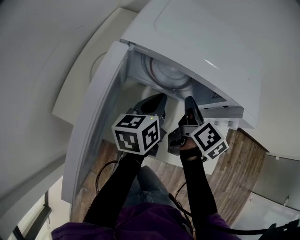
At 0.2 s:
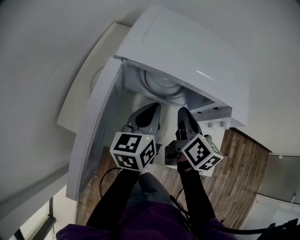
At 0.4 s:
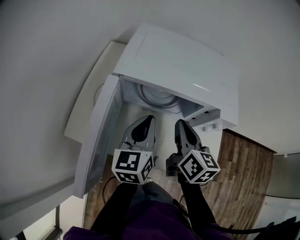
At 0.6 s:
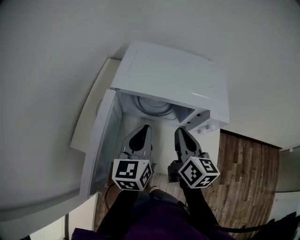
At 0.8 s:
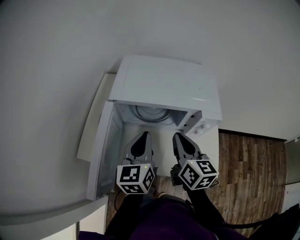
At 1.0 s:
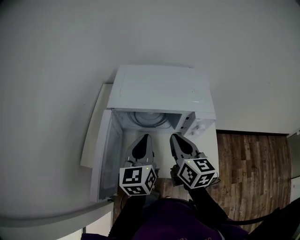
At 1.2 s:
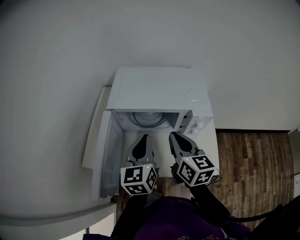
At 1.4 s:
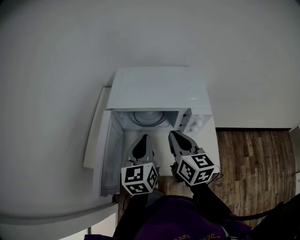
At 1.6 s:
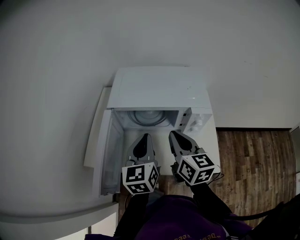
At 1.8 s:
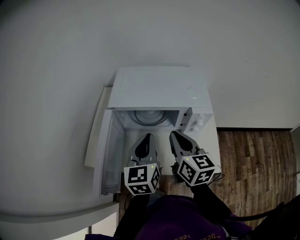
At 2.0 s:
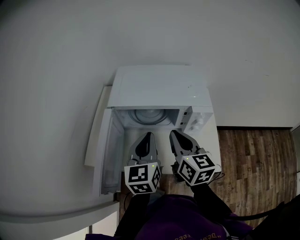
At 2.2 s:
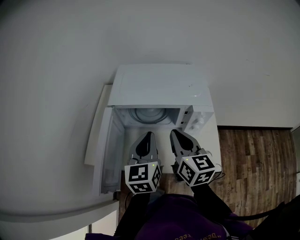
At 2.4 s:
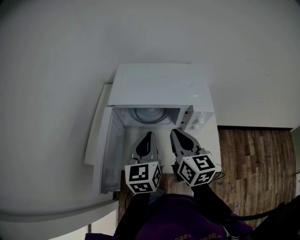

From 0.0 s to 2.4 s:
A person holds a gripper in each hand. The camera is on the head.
From 0.0 s to 1.2 s: The two grippers go about 20 cm upward and backward. The left gripper changes its angle by some 30 degrees. The right gripper changes its angle by approximately 30 degrees.
From 1.2 s to 2.4 s: The grippers stay close to where they were, moving slightly.

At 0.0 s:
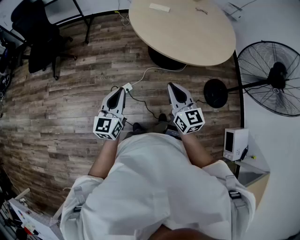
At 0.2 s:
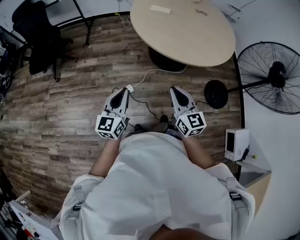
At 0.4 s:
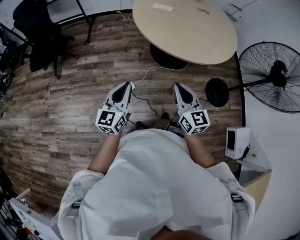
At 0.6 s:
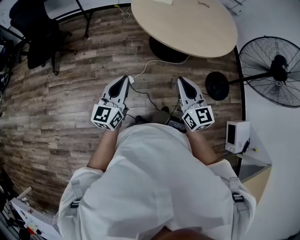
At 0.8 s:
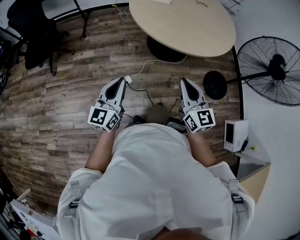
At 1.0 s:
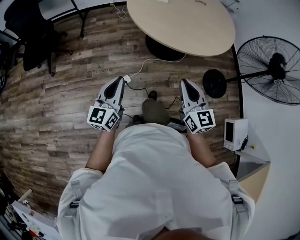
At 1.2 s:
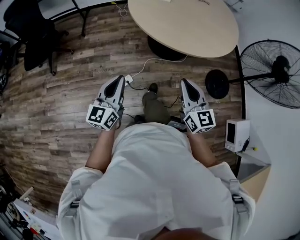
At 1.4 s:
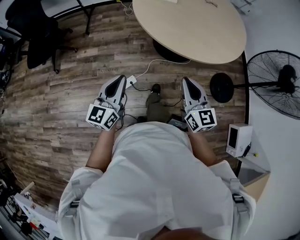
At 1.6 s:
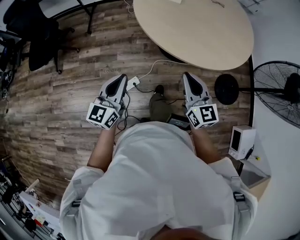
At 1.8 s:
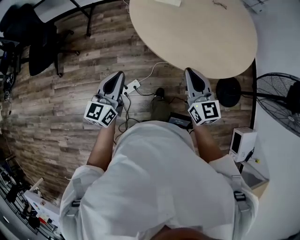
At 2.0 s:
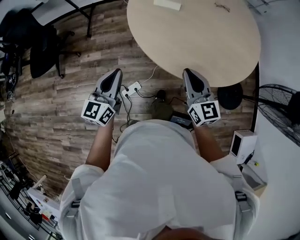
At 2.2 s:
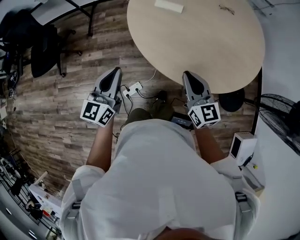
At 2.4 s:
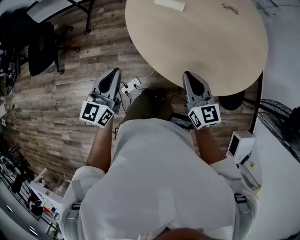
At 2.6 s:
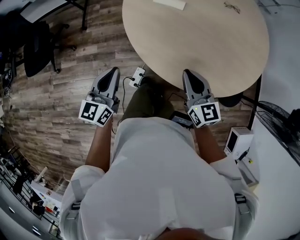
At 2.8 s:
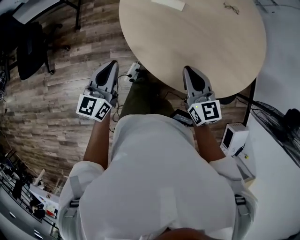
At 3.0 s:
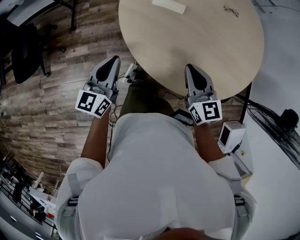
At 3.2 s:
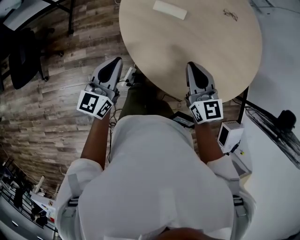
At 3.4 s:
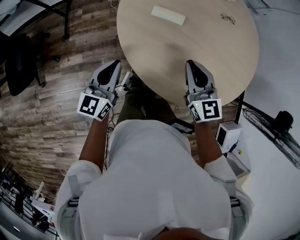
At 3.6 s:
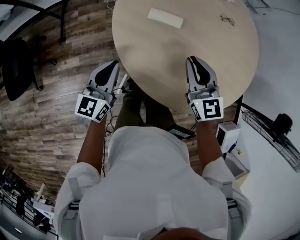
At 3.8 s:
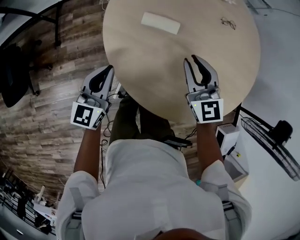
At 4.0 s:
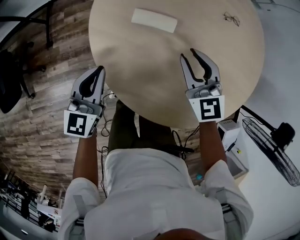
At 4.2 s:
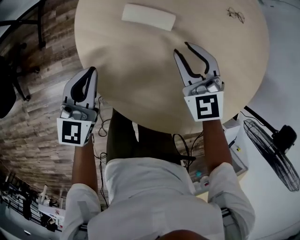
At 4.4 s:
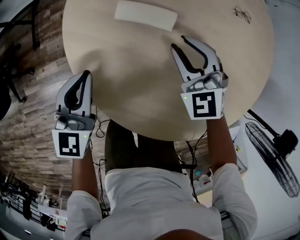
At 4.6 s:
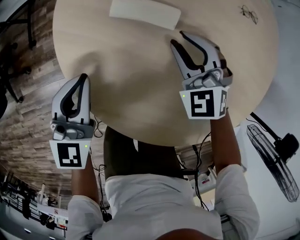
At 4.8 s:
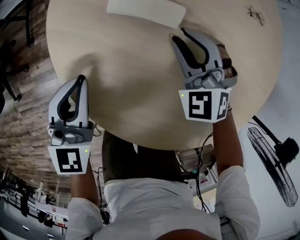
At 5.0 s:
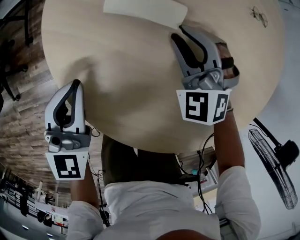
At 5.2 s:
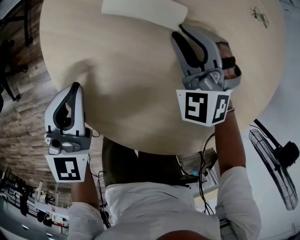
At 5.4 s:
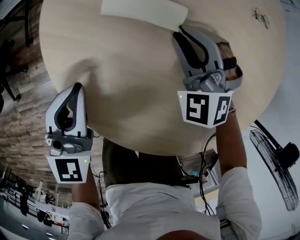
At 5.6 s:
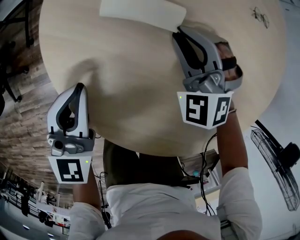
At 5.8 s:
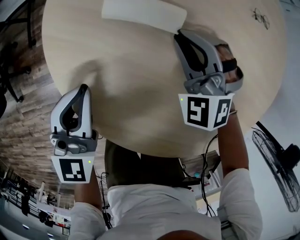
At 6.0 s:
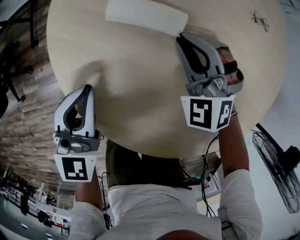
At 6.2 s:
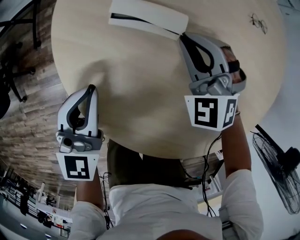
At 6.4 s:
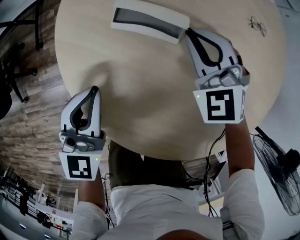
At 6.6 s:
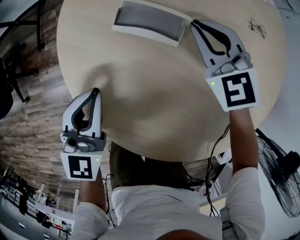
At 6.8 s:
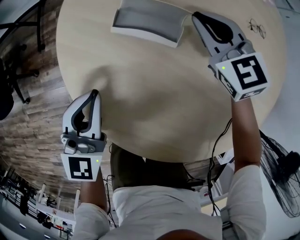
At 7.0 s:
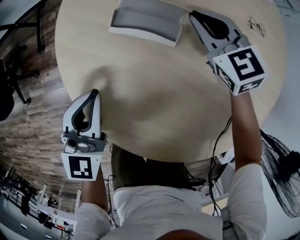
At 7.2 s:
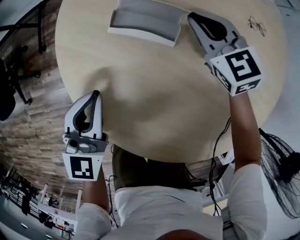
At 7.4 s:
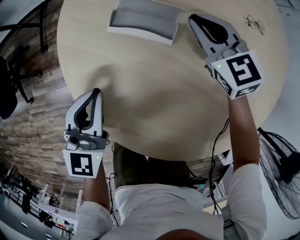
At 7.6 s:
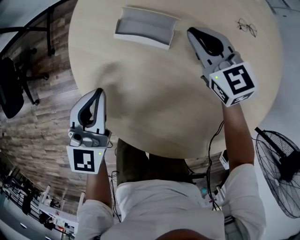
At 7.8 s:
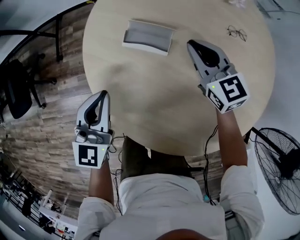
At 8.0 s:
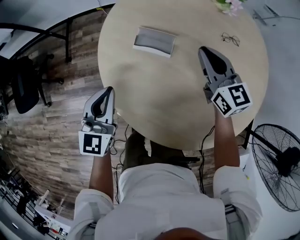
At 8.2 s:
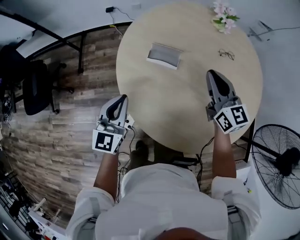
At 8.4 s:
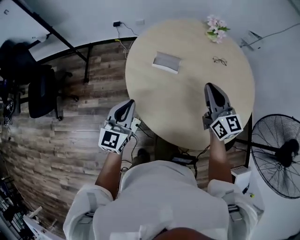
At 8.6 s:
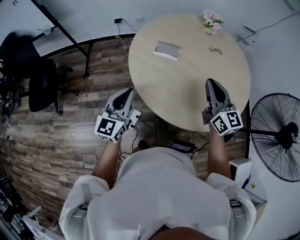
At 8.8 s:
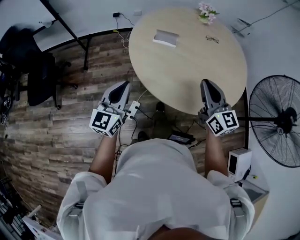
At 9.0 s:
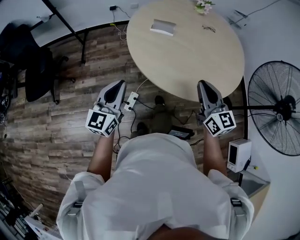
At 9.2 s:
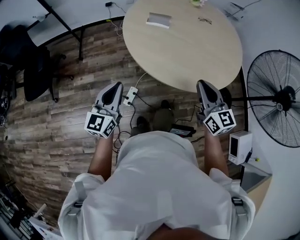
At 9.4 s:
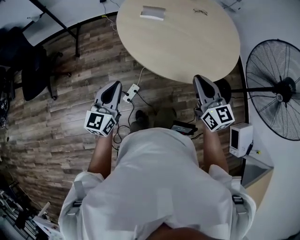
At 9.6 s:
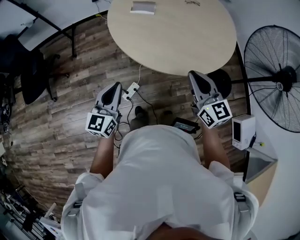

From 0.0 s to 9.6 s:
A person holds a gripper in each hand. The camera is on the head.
From 0.0 s to 1.6 s: Both grippers move forward, roughly 15 cm.
From 1.6 s to 3.2 s: The grippers both shift forward by about 35 cm.
From 3.2 s to 4.8 s: The left gripper travels downward, forward and to the right by about 25 cm, and turns by about 30 degrees, while the right gripper heads downward and forward, covering roughly 30 cm, rolls counterclockwise, seen from behind, by some 50 degrees, and opens up.
From 4.8 s to 6.4 s: The right gripper shifts by some 5 cm, and closes up.
From 6.4 s to 8.0 s: The two grippers go roughly 15 cm upward. The right gripper rolls clockwise, seen from behind, by some 40 degrees.
From 8.0 s to 9.6 s: Both grippers move backward, some 40 cm.

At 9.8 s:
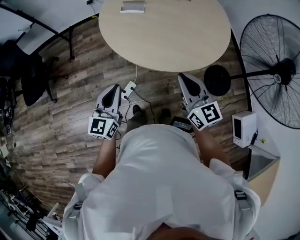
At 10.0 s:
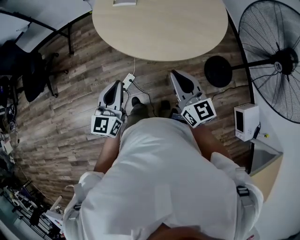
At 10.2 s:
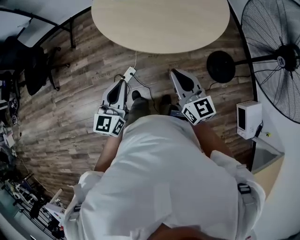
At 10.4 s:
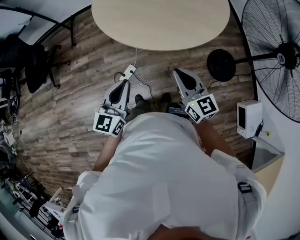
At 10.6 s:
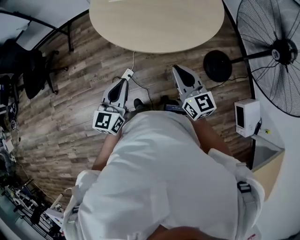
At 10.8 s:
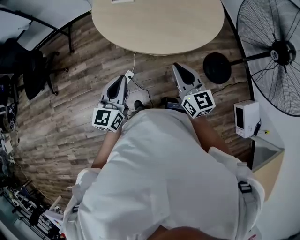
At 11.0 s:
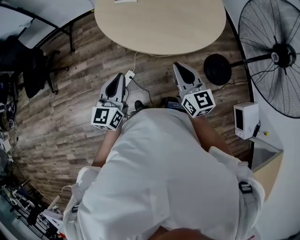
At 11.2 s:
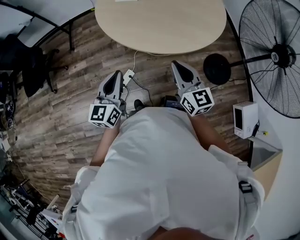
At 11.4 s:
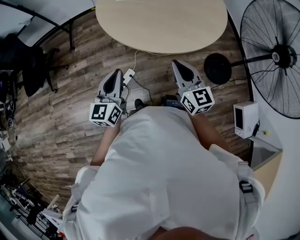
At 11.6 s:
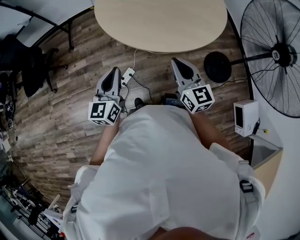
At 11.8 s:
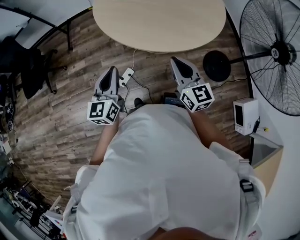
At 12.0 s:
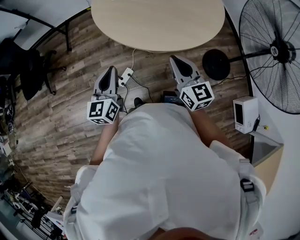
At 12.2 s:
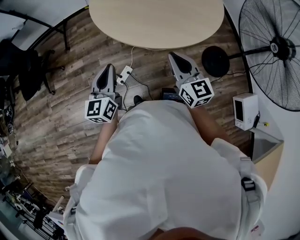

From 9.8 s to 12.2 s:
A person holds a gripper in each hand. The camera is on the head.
From 9.8 s to 11.0 s: The left gripper travels backward and to the right by approximately 10 cm. The right gripper moves backward, approximately 5 cm.
From 11.0 s to 12.2 s: The left gripper changes place by about 5 cm.

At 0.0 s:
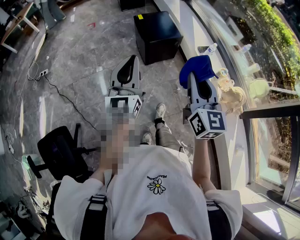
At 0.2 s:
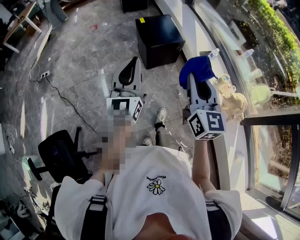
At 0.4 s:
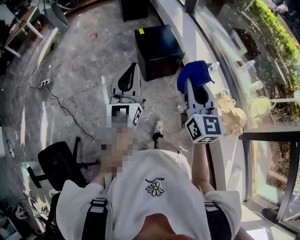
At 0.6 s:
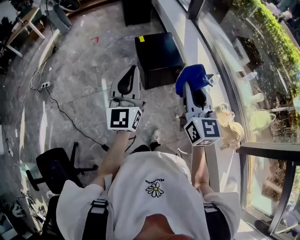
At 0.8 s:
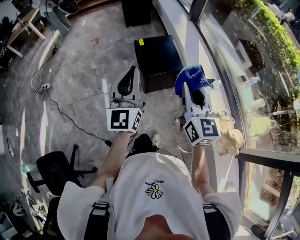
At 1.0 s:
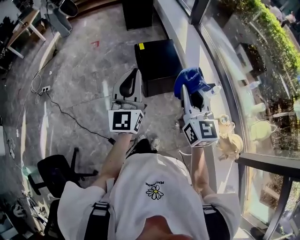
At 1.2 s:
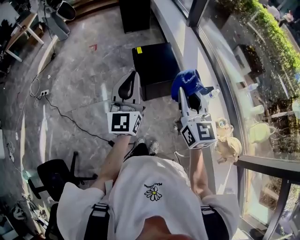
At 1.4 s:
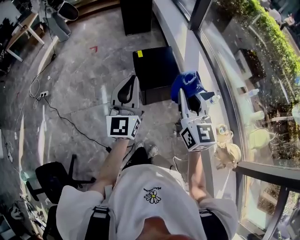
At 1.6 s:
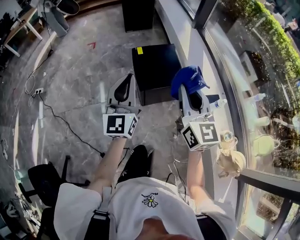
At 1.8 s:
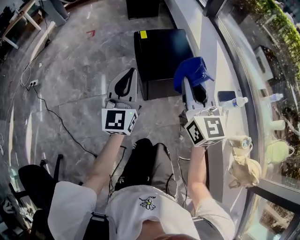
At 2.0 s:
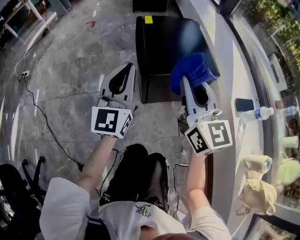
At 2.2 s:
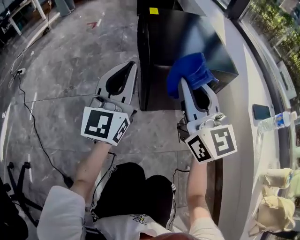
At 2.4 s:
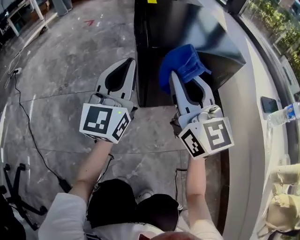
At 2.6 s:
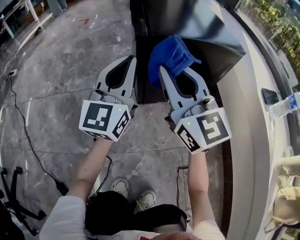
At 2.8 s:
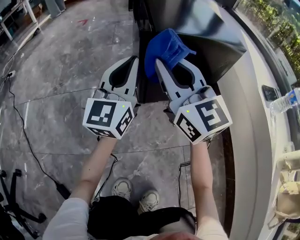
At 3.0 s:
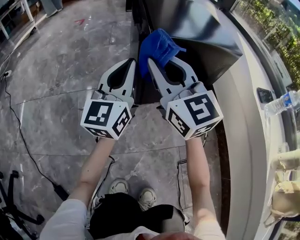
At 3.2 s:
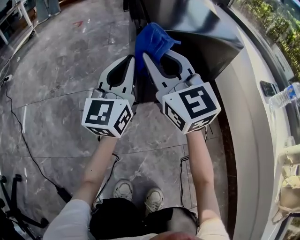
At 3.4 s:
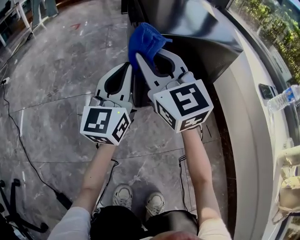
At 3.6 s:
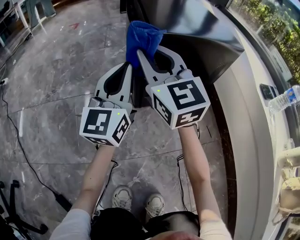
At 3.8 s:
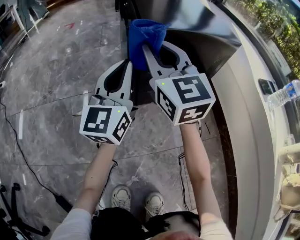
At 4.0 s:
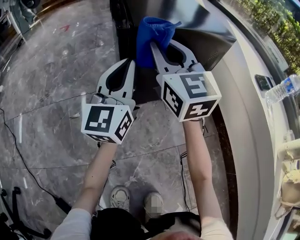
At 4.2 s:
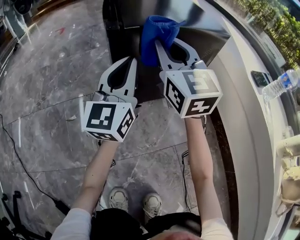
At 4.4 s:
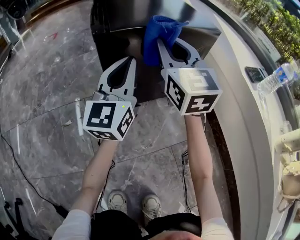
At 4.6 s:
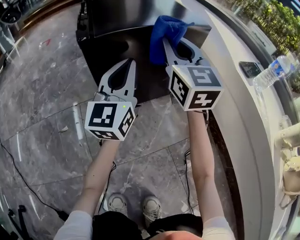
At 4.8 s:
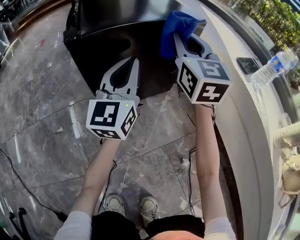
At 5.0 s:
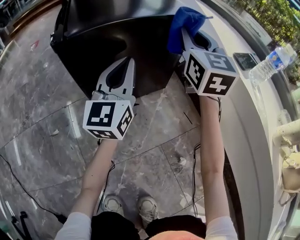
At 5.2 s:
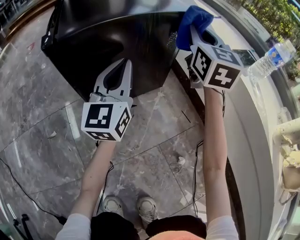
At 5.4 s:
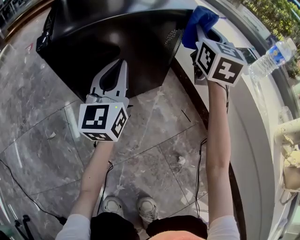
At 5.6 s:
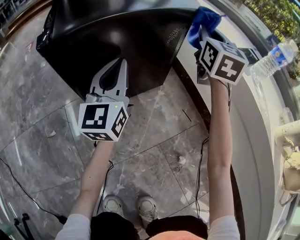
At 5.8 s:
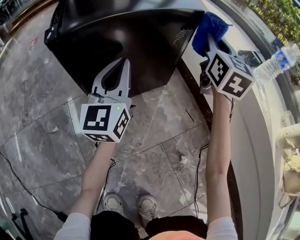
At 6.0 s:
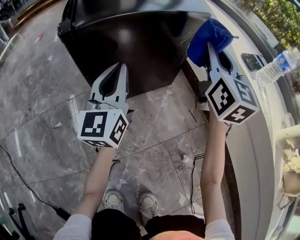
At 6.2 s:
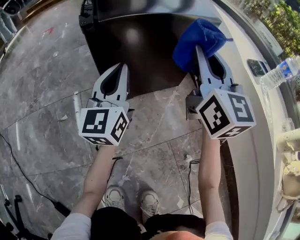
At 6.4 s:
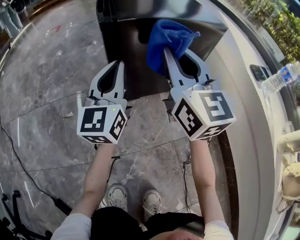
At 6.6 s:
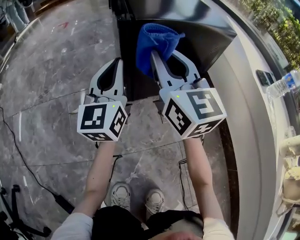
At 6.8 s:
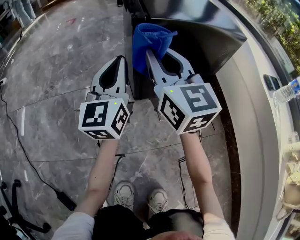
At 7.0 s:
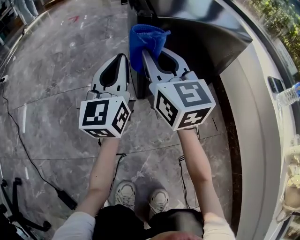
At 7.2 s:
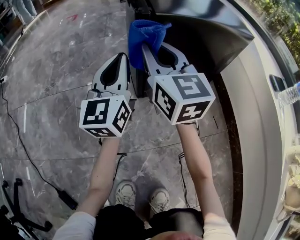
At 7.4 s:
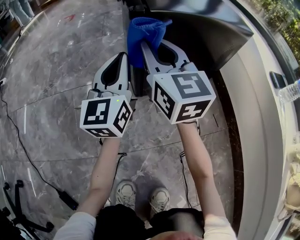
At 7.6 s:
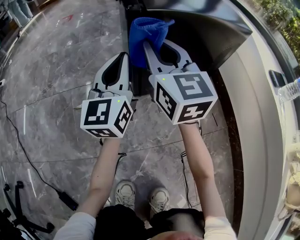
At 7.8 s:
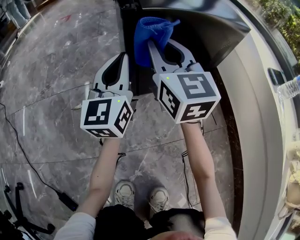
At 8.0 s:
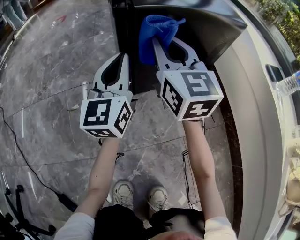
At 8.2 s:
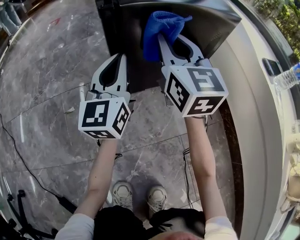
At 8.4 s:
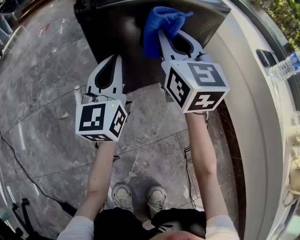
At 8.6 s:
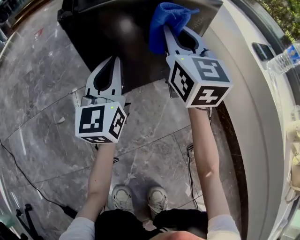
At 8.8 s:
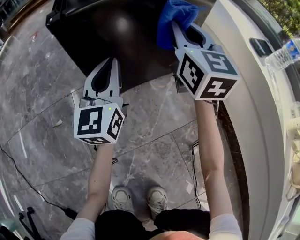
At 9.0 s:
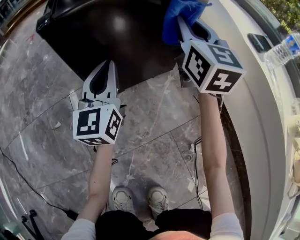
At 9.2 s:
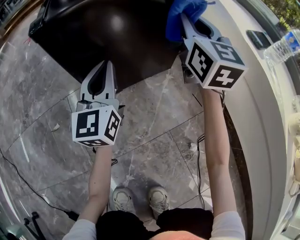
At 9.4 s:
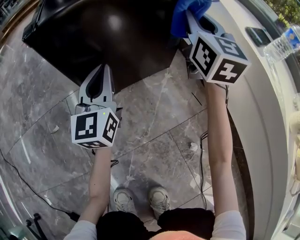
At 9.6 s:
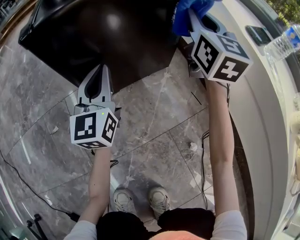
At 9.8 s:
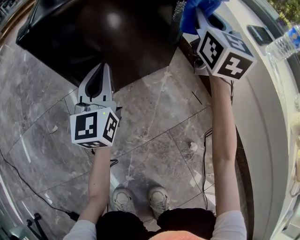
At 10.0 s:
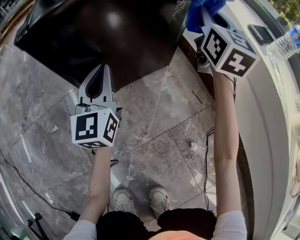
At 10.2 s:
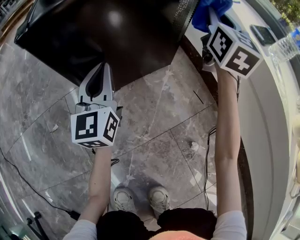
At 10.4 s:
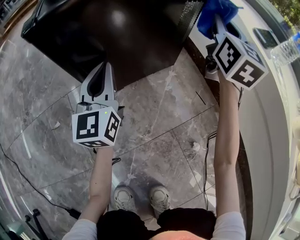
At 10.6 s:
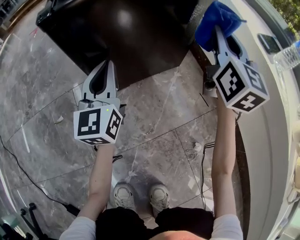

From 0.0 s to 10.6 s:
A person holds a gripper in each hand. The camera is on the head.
From 0.0 s to 1.6 s: The grippers both shift forward by approximately 40 cm.
From 1.6 s to 3.0 s: Both grippers travel together downward, about 50 cm. The right gripper changes its angle by some 30 degrees.
From 3.0 s to 4.6 s: The right gripper shifts roughly 20 cm to the right and forward, and turns by some 30 degrees, while the left gripper travels to the right by roughly 15 cm.
From 4.6 s to 6.0 s: The right gripper heads to the right, covering some 15 cm.
From 6.0 s to 7.6 s: The left gripper moves to the left, approximately 15 cm; the right gripper heads to the left, covering about 30 cm, and changes its angle by about 30 degrees.
From 7.6 s to 9.0 s: The right gripper moves to the right, about 25 cm, and turns by some 20 degrees. The left gripper travels to the right and downward by roughly 10 cm.
From 9.0 s to 10.6 s: The right gripper is displaced to the right by roughly 5 cm.
